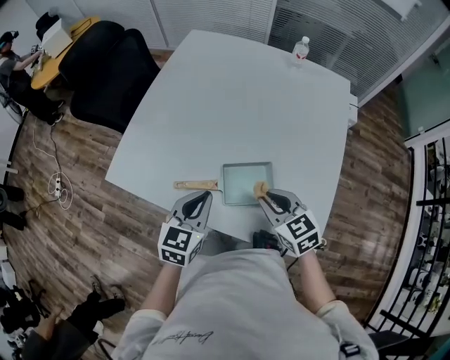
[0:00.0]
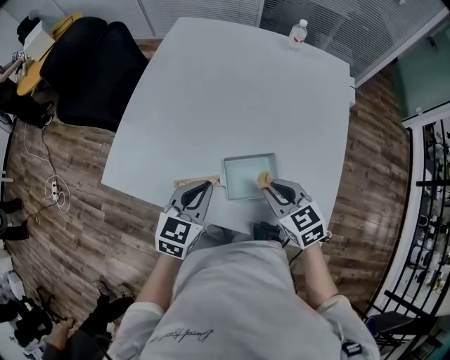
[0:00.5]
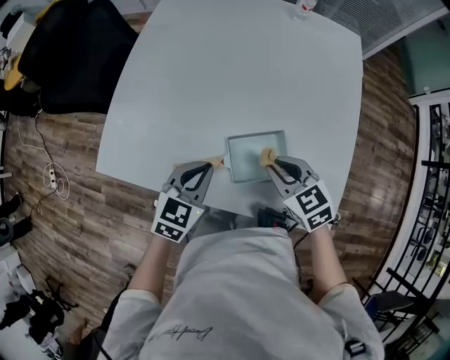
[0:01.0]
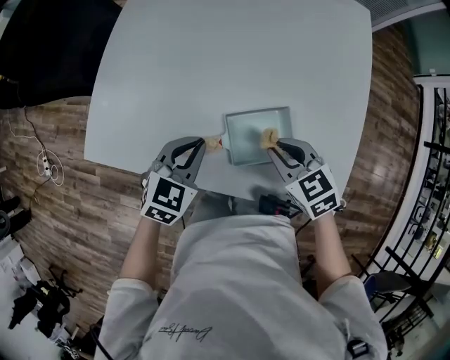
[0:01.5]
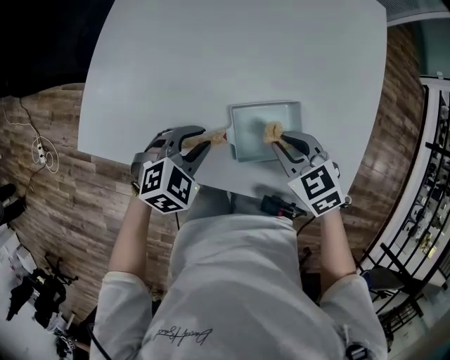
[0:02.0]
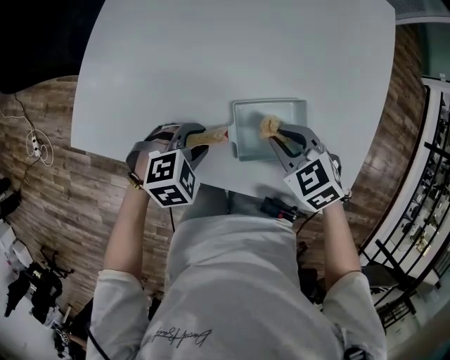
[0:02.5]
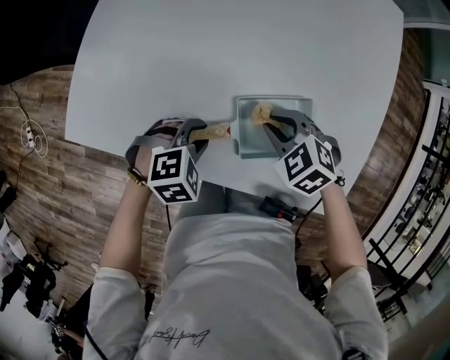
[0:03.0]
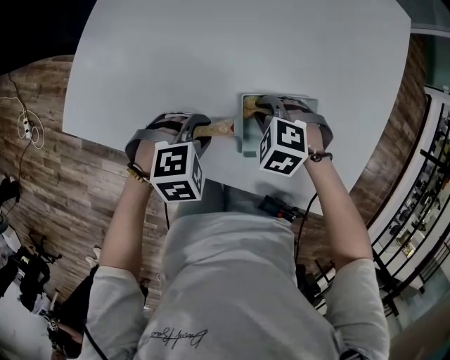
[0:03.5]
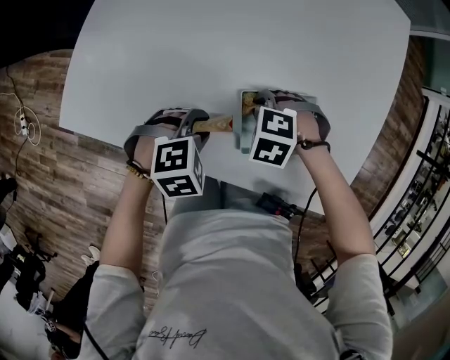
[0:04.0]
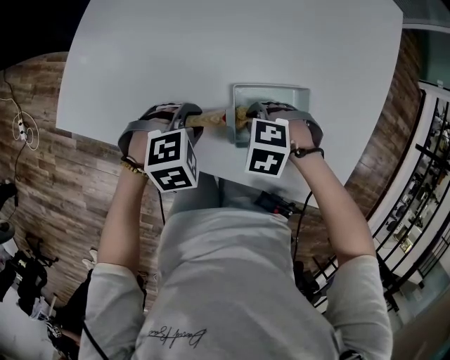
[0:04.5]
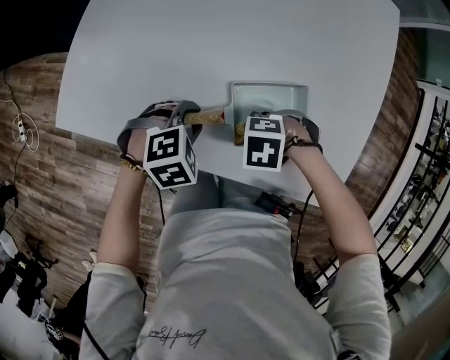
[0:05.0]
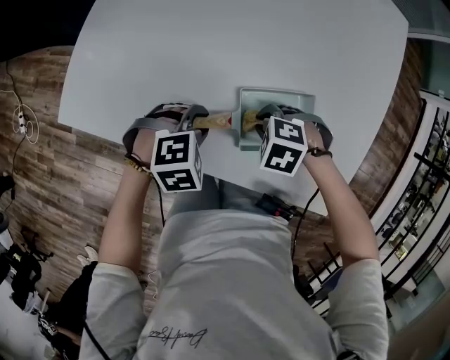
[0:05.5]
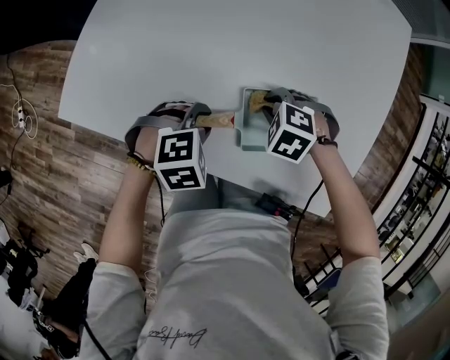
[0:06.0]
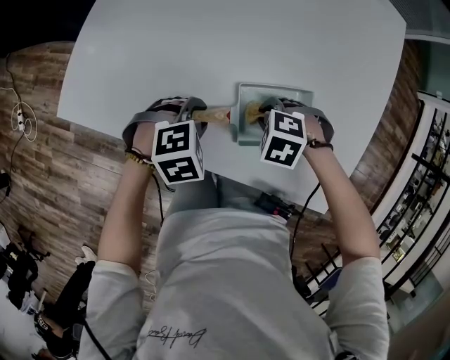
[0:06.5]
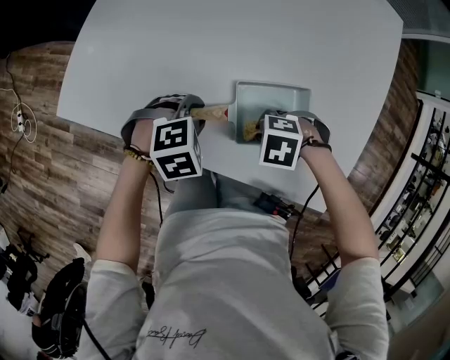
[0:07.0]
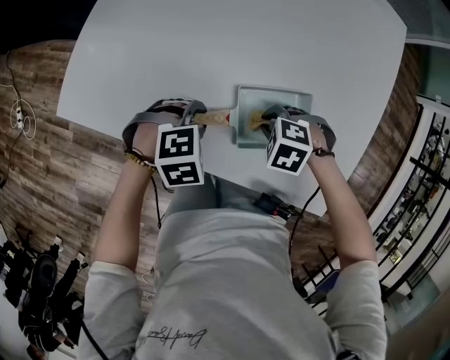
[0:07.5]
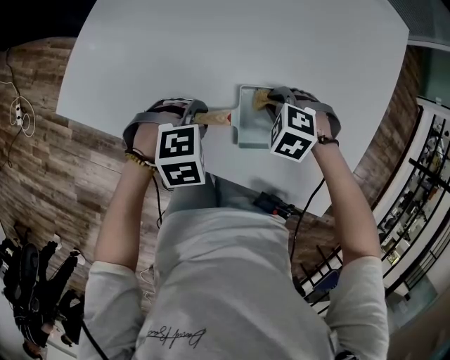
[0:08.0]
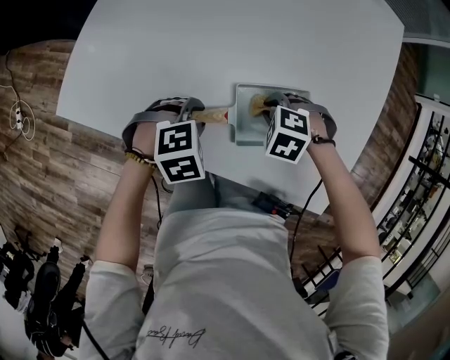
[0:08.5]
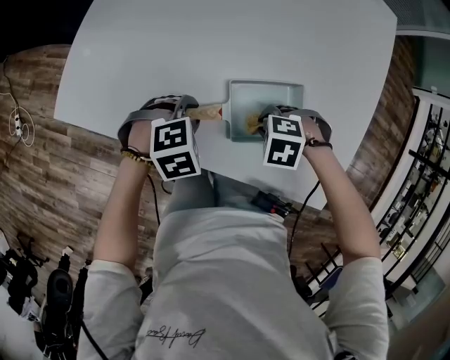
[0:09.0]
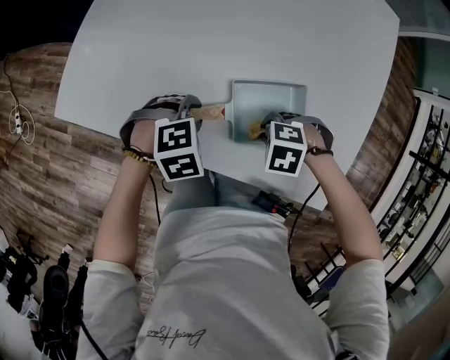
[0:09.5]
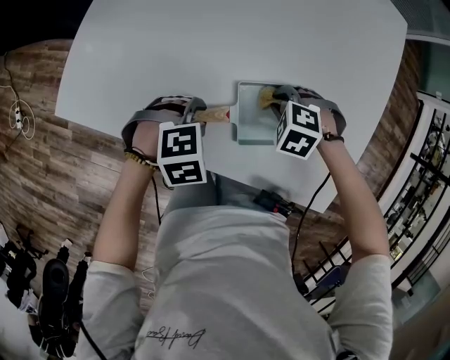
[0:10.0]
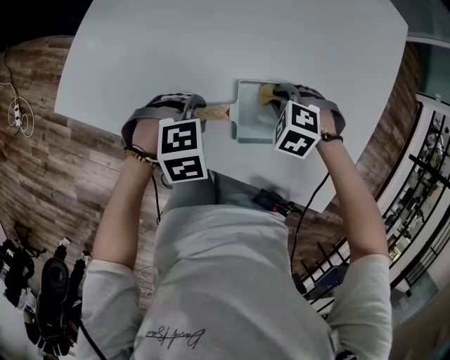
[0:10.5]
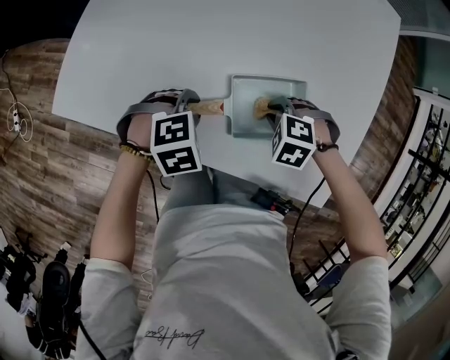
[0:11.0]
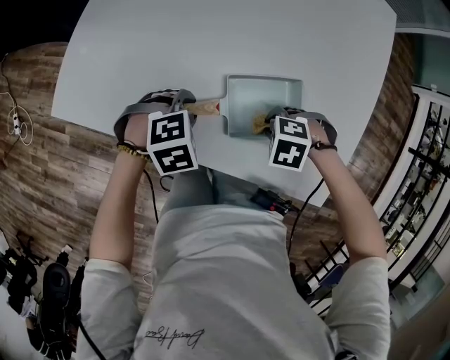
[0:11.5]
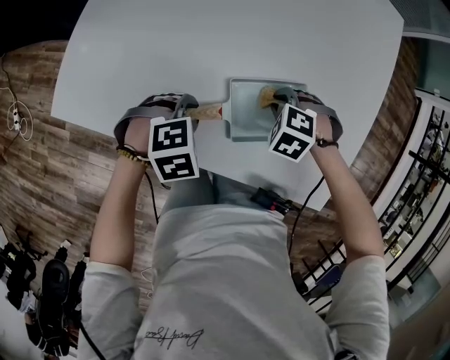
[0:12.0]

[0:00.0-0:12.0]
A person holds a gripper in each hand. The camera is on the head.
0:00.0 to 0:02.0: The left gripper is displaced downward by roughly 15 cm, swivels about 50 degrees, and opens its fingers. The right gripper shifts about 10 cm downward.
0:02.0 to 0:04.0: The left gripper moves downward, about 5 cm, while the right gripper heads downward, covering about 10 cm, and tilts its fingers approximately 30 degrees downward.

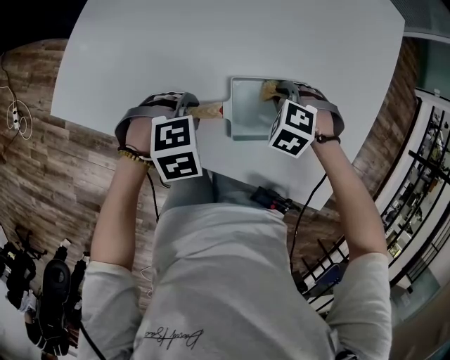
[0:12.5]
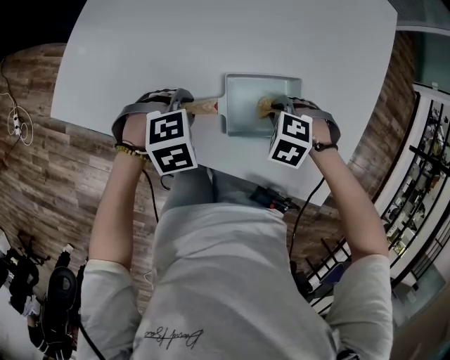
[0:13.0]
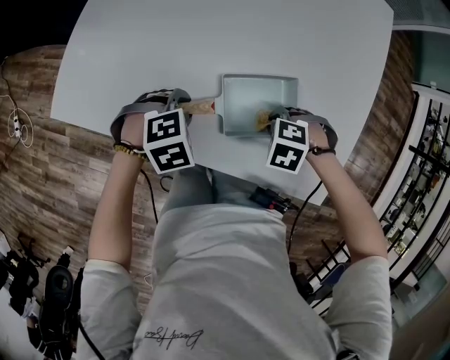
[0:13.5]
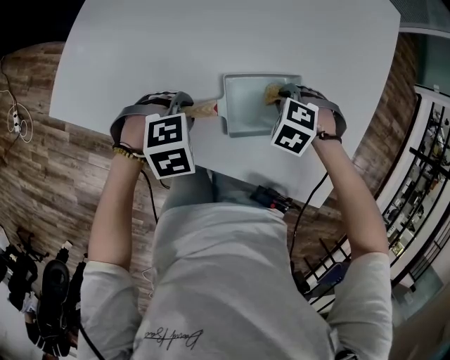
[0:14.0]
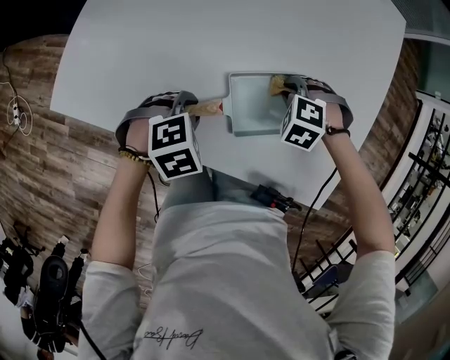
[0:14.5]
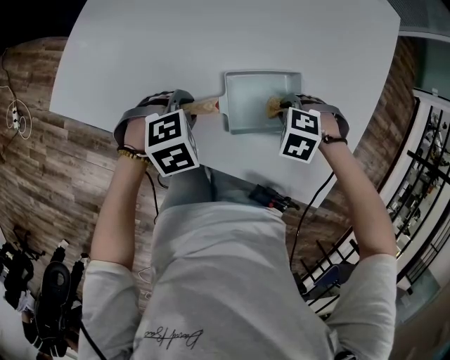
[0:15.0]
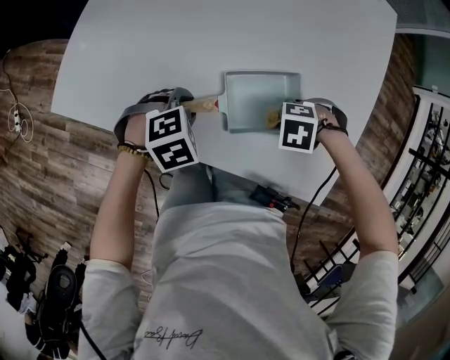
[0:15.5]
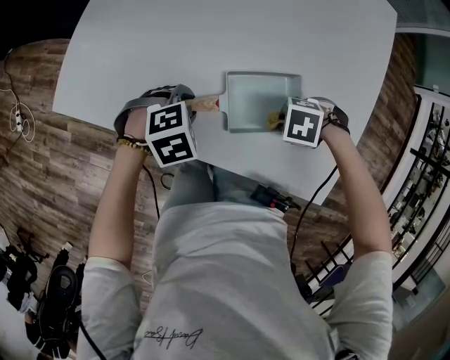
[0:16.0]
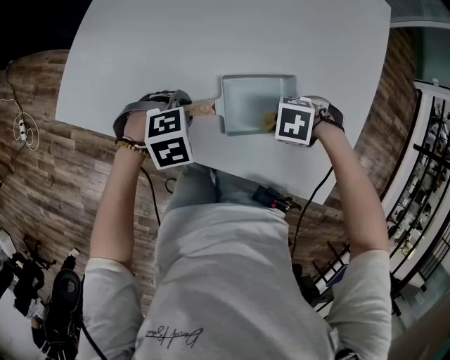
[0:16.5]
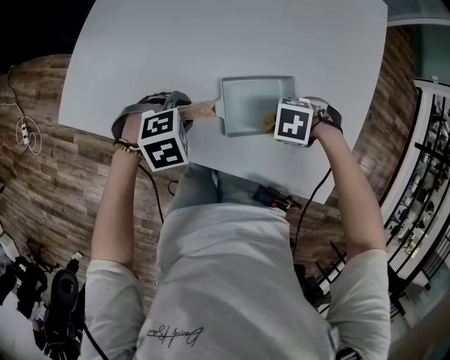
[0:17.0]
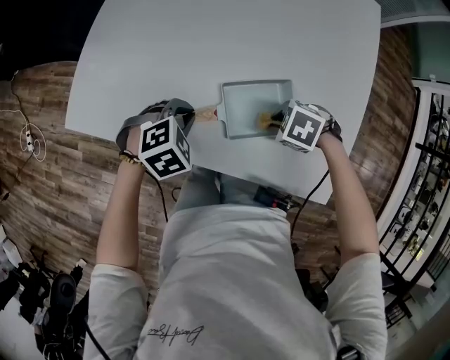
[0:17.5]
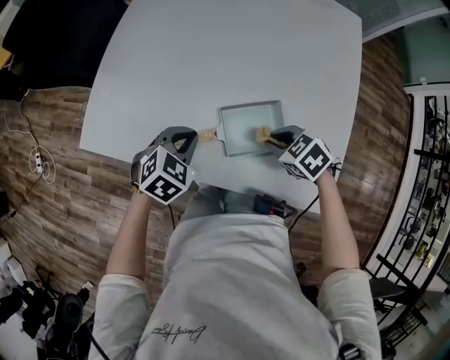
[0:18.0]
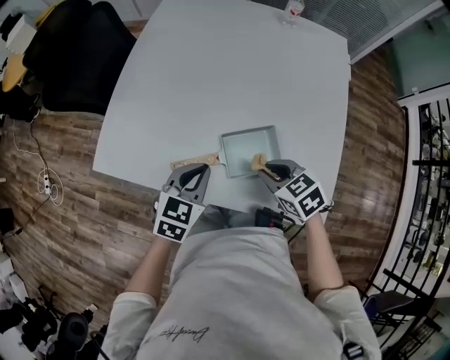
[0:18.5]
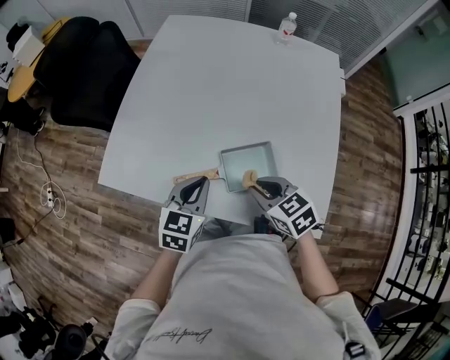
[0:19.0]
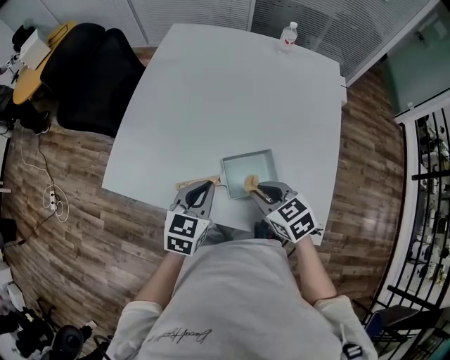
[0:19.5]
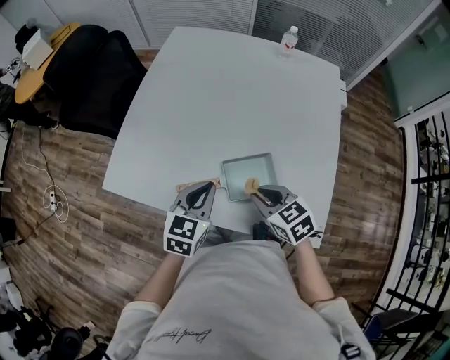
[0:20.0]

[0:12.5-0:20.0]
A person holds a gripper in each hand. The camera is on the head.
0:14.5 to 0:16.5: The right gripper ends up some 10 cm from where it was, and turns by approximately 40 degrees.
0:16.5 to 0:18.0: The grippers both shift upward by approximately 10 cm. The left gripper swivels about 30 degrees, and closes up. Meanwhile the right gripper rotates approximately 50 degrees.
0:18.0 to 0:20.0: Both grippers move upward, some 10 cm. The left gripper swivels approximately 40 degrees. Meanwhile the right gripper changes its angle by roughly 30 degrees.

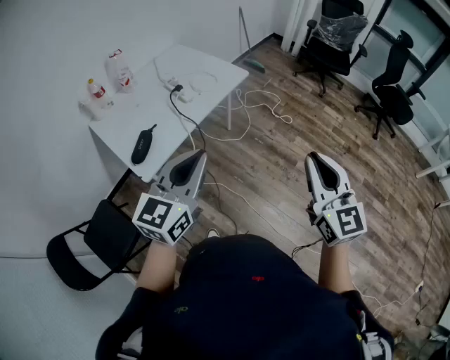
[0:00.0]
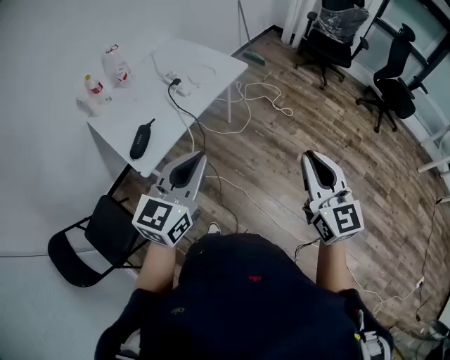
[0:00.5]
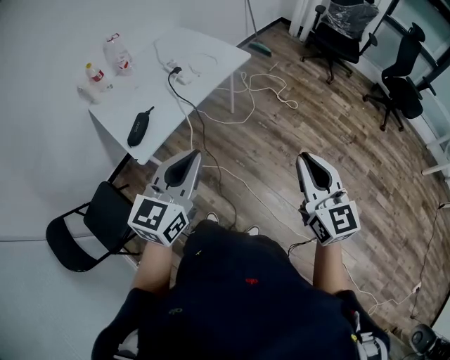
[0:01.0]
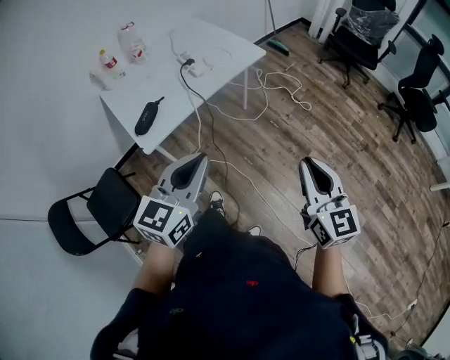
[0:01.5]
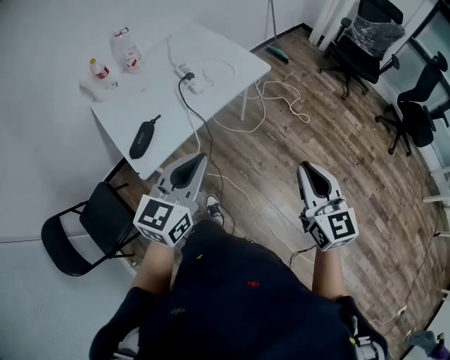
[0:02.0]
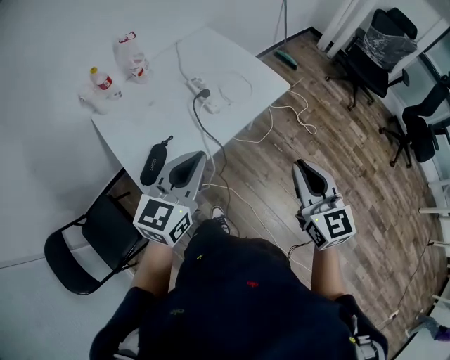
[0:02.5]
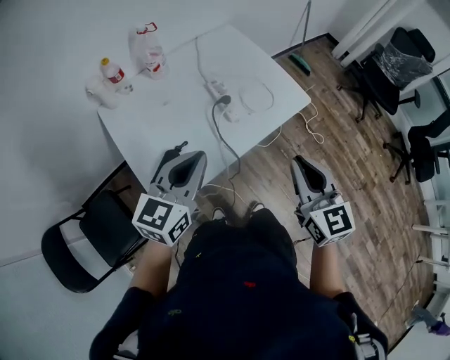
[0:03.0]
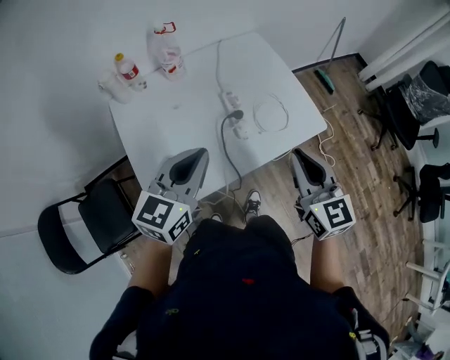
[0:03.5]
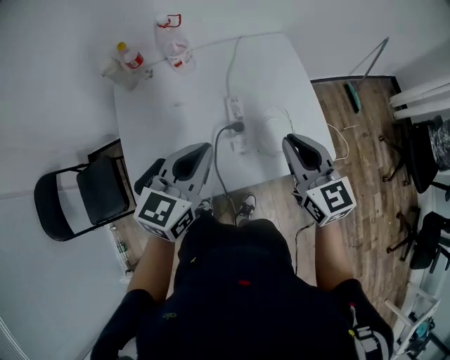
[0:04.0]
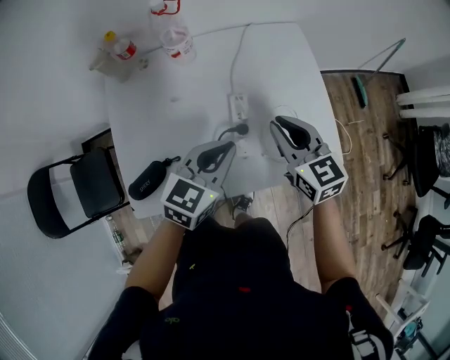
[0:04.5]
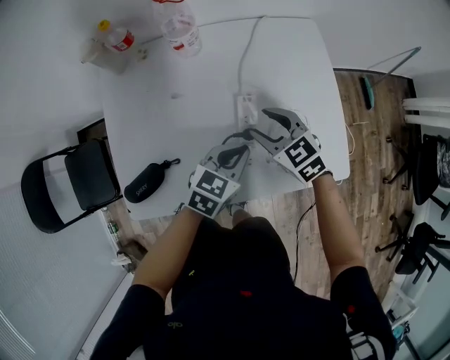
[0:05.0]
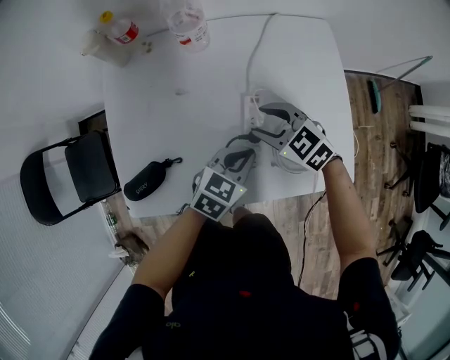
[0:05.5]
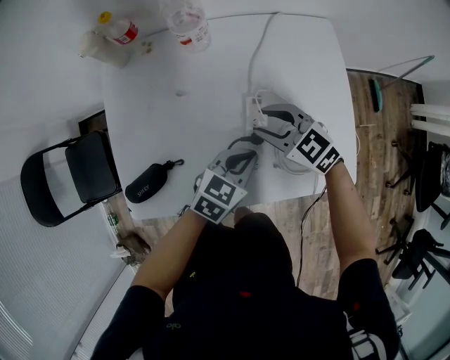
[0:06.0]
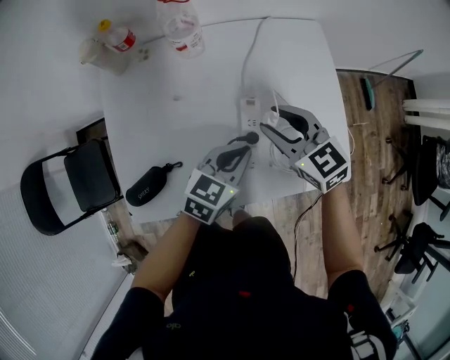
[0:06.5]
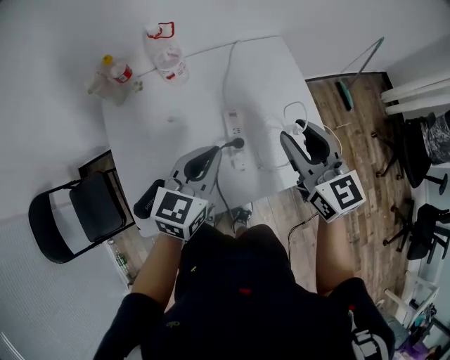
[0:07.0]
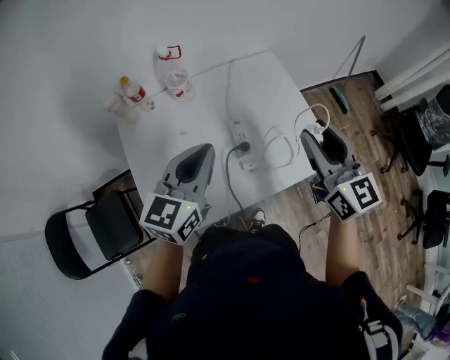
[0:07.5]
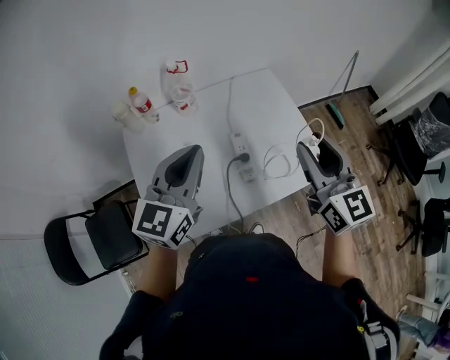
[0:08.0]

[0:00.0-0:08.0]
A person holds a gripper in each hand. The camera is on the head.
0:00.0 to 0:02.0: The grippers both shift forward and downward by approximately 15 cm.
0:02.0 to 0:04.0: The left gripper shifts by approximately 40 cm, and rotates roughly 30 degrees; the right gripper moves about 50 cm, and swivels some 40 degrees.
0:04.0 to 0:06.0: The left gripper moves downward, some 25 cm, and turns by about 20 degrees. Meanwhile the right gripper travels downward, forward and to the left by approximately 25 cm, rotates approximately 50 degrees, and opens its fingers.
0:06.0 to 0:08.0: Both grippers travel together upward, approximately 35 cm. The left gripper tilts its fingers roughly 30 degrees upward. Meanwhile the right gripper angles its fingers upward, by approximately 30 degrees.
